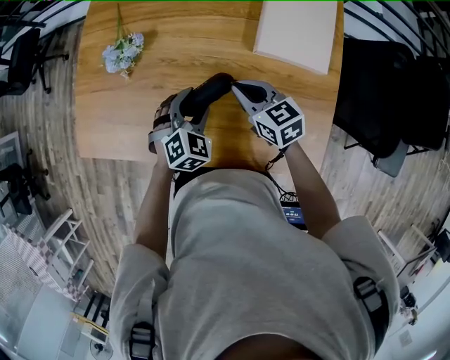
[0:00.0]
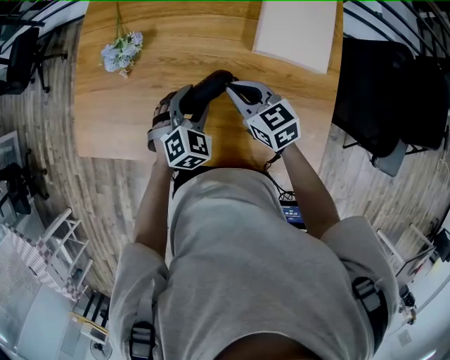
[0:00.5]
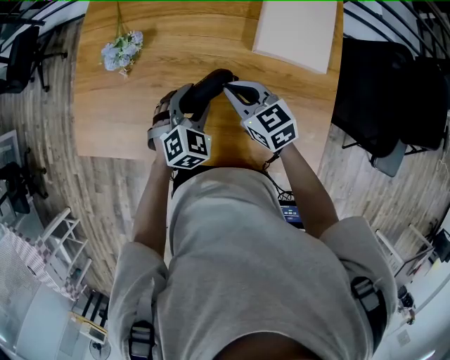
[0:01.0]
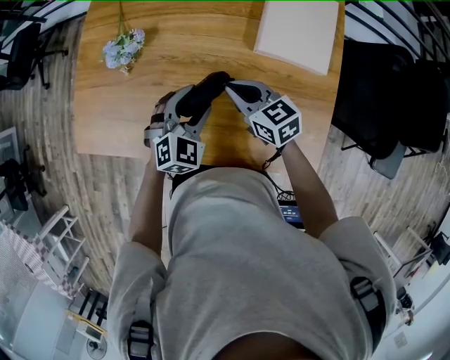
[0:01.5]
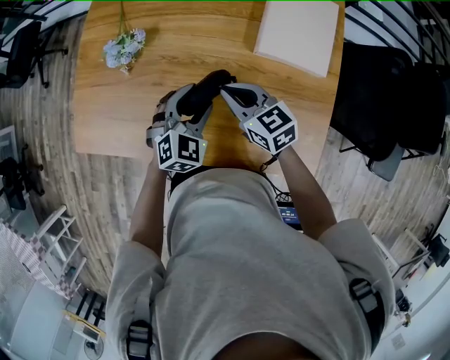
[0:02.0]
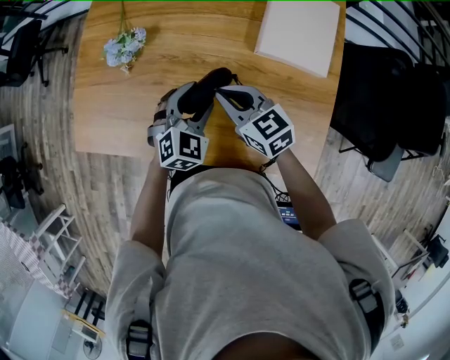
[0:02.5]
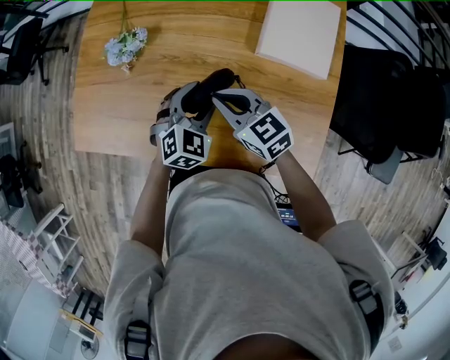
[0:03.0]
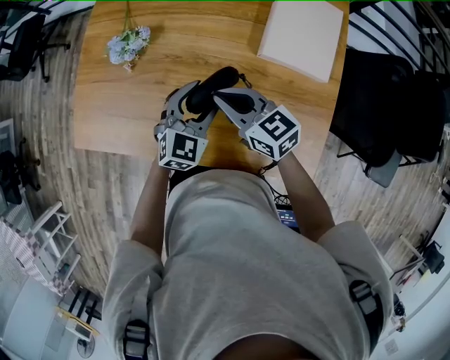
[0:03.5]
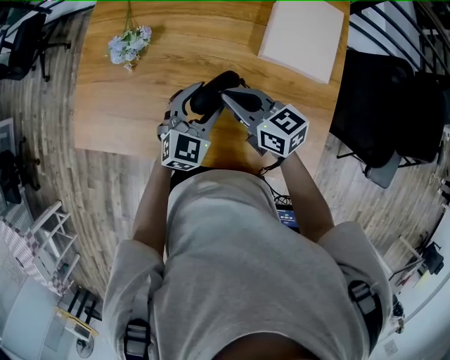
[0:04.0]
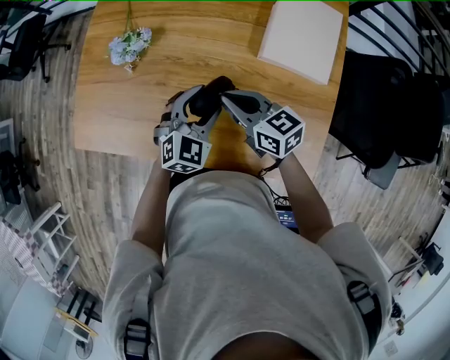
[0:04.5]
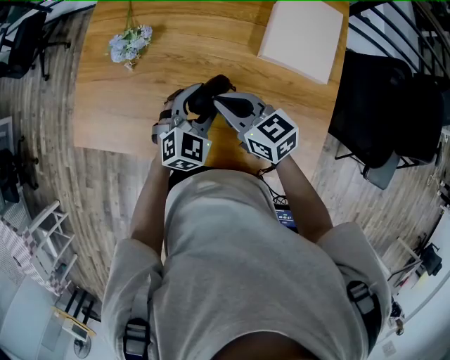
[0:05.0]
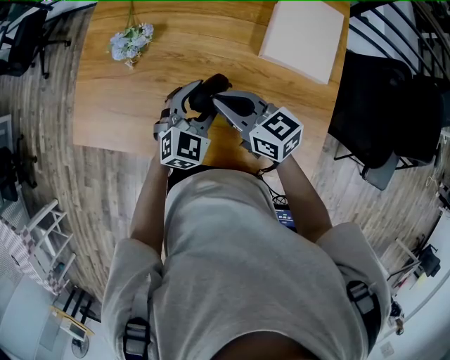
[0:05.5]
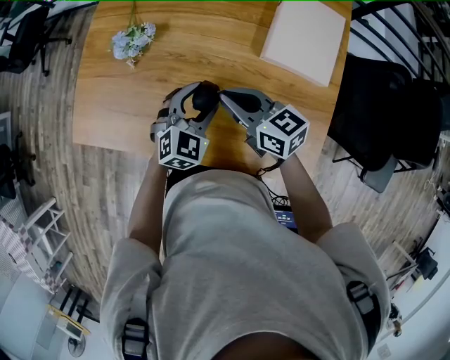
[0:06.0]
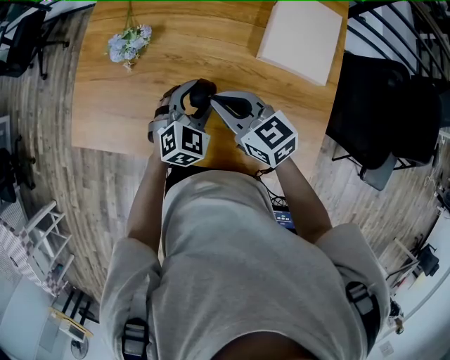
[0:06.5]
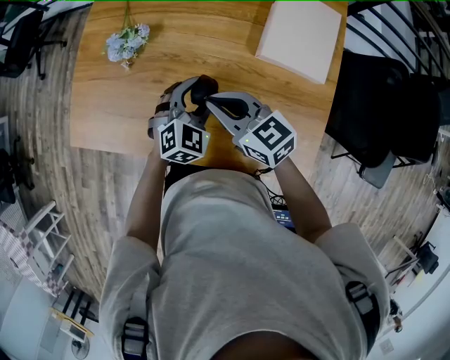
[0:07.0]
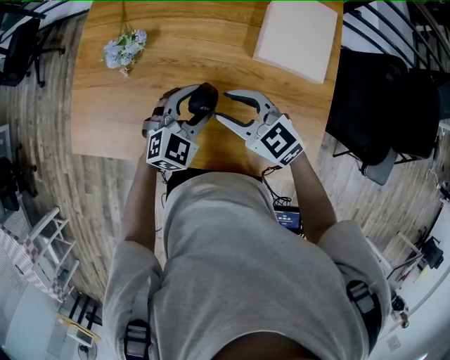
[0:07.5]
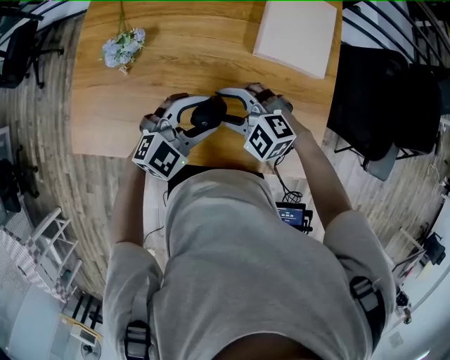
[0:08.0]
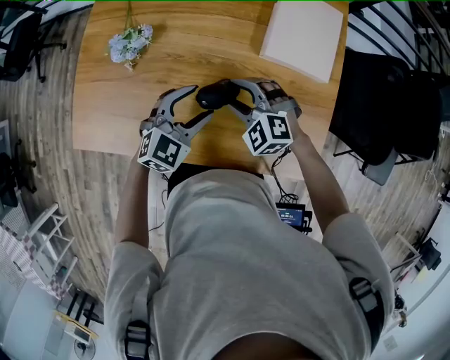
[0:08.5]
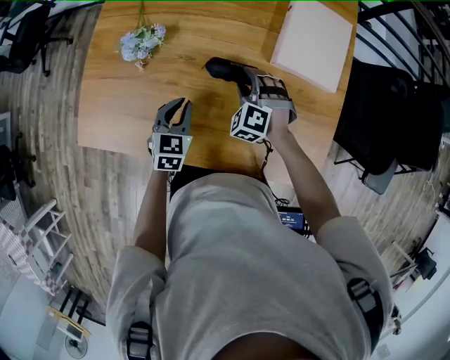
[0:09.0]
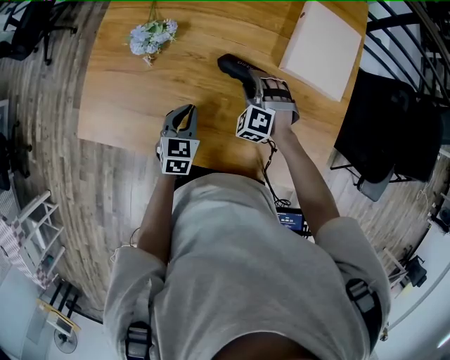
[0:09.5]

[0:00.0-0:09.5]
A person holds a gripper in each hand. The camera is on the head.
0:00.0 to 0:02.0: There are only small adjustments of the grippers.
0:02.0 to 0:04.0: The grippers stay close to where they were, moving slightly.
0:04.0 to 0:05.5: The grippers move only a little.
0:05.5 to 0:07.5: The right gripper turns by about 30 degrees, and opens its fingers.
0:07.5 to 0:09.5: The right gripper shifts roughly 15 cm downward, and rotates some 60 degrees; the left gripper shifts by roughly 15 cm, rotates approximately 40 degrees, and closes up.

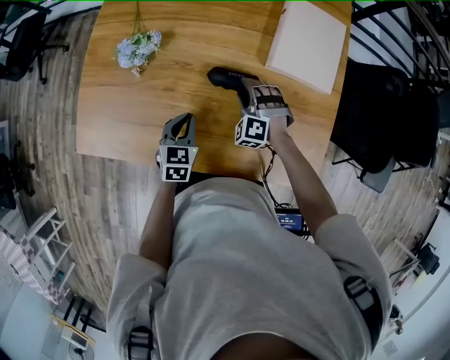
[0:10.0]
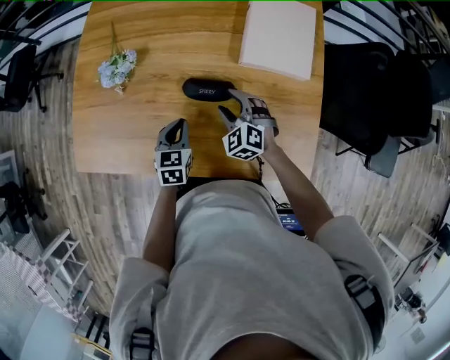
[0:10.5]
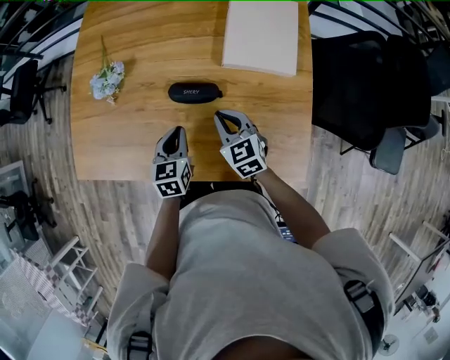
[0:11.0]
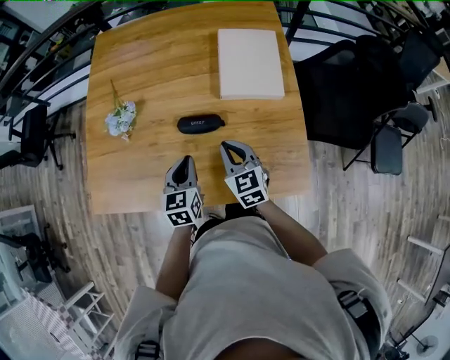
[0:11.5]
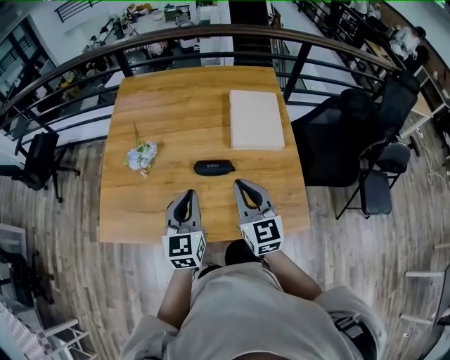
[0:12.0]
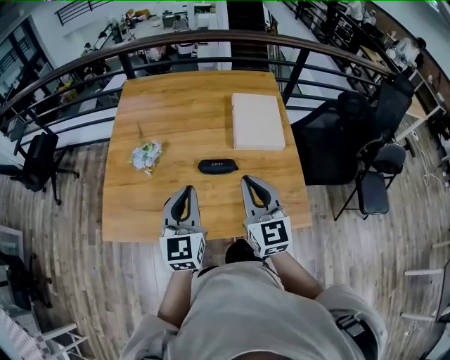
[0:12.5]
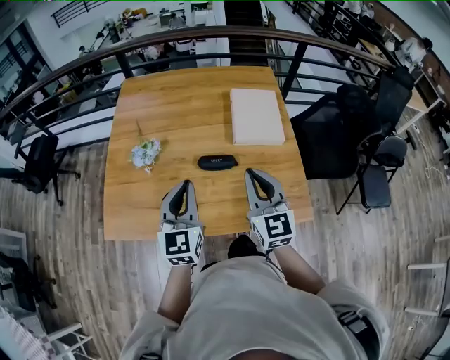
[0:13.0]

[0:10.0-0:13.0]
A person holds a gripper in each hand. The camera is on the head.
0:10.0 to 0:11.5: The left gripper heads upward and to the right, covering some 10 cm. The right gripper moves upward, backward and to the right, about 15 cm, twists roughly 70 degrees clockwise, seen from behind, and closes.
0:11.5 to 0:13.0: The two grippers go about 20 cm upward. The left gripper swivels some 30 degrees, while the right gripper swivels roughly 20 degrees.

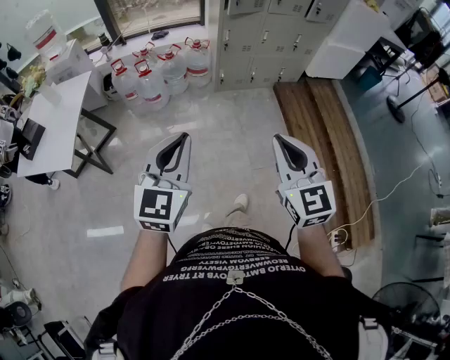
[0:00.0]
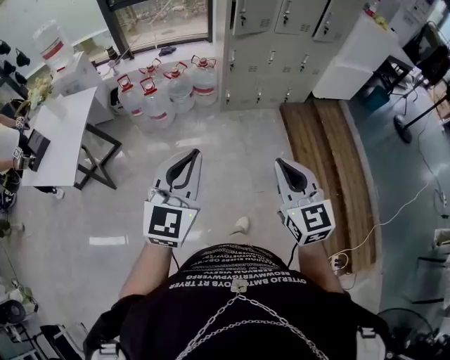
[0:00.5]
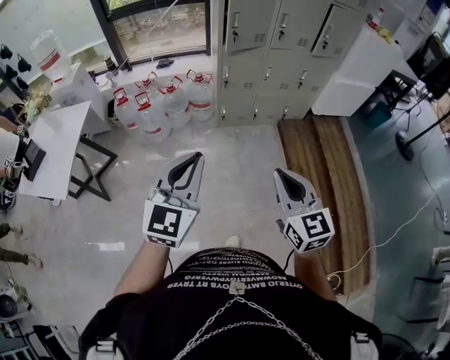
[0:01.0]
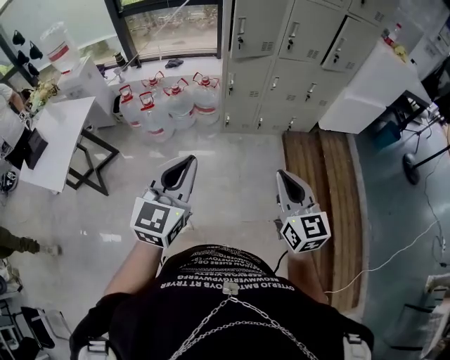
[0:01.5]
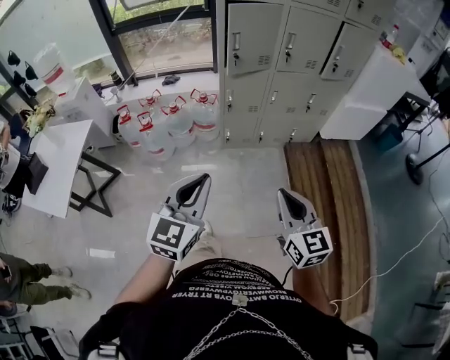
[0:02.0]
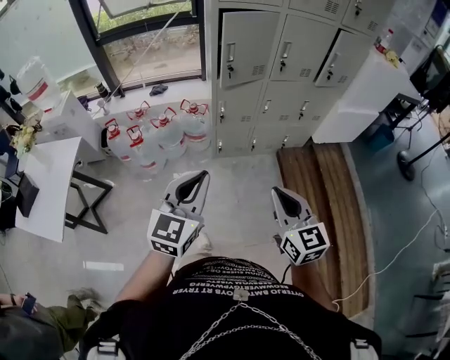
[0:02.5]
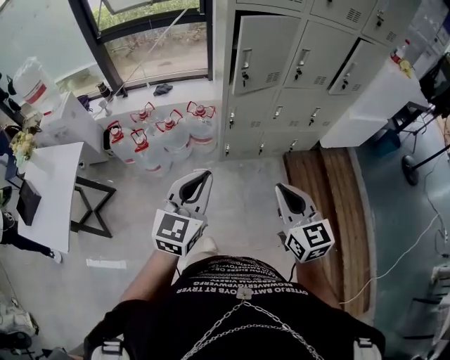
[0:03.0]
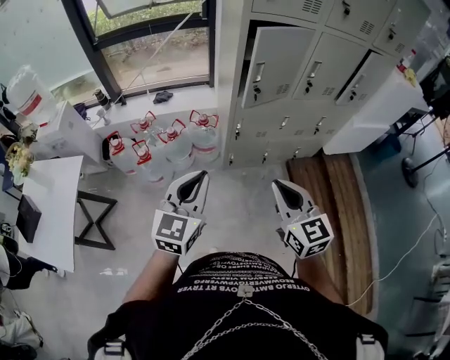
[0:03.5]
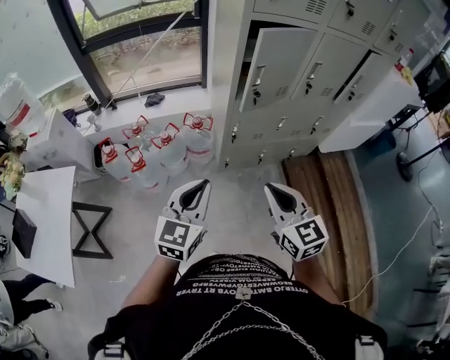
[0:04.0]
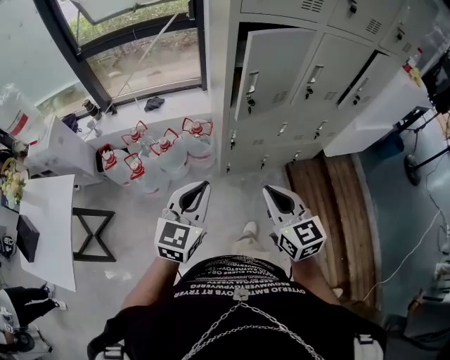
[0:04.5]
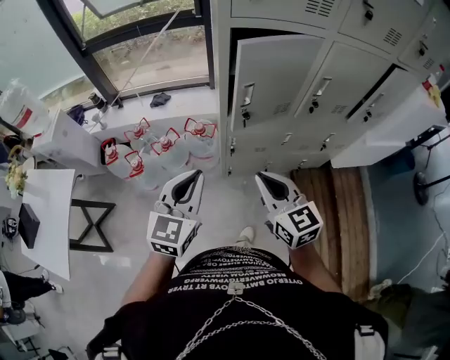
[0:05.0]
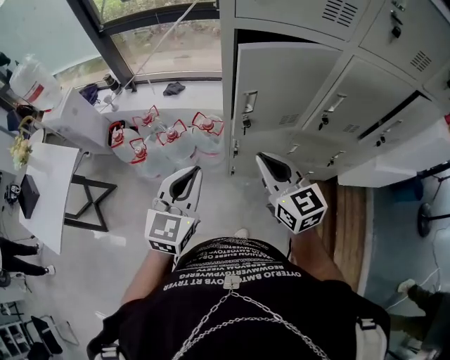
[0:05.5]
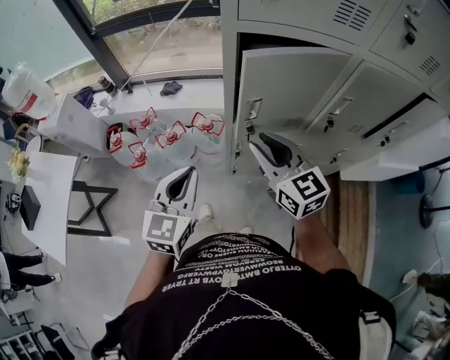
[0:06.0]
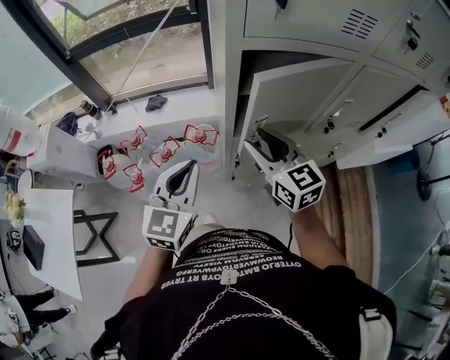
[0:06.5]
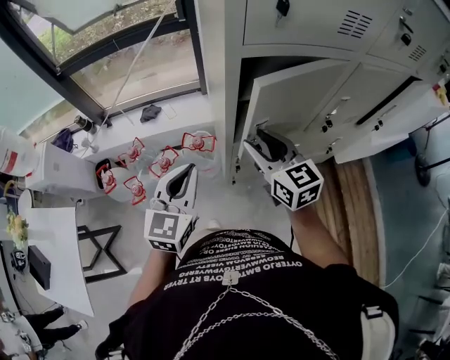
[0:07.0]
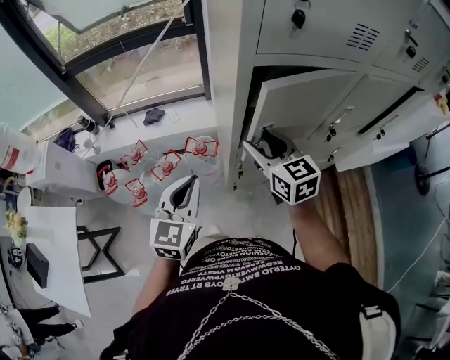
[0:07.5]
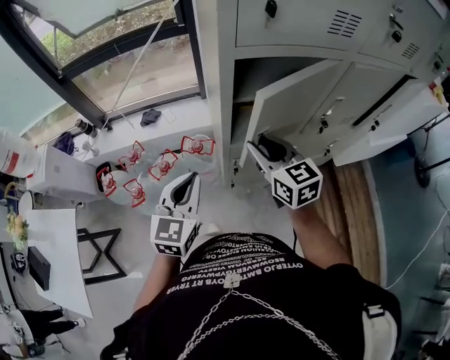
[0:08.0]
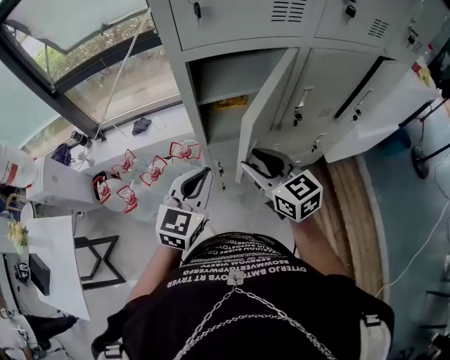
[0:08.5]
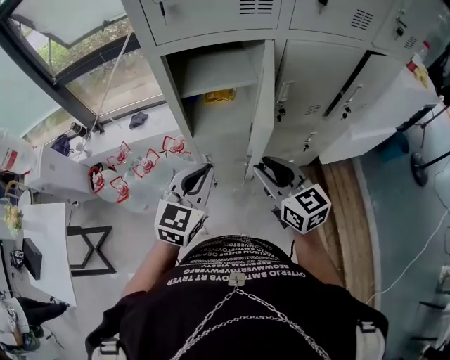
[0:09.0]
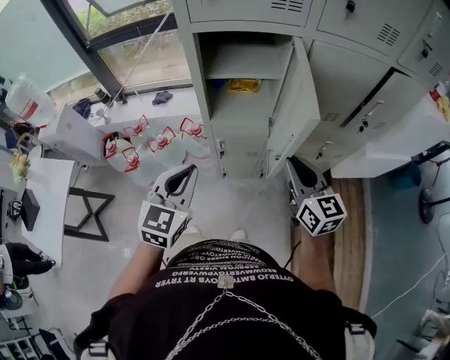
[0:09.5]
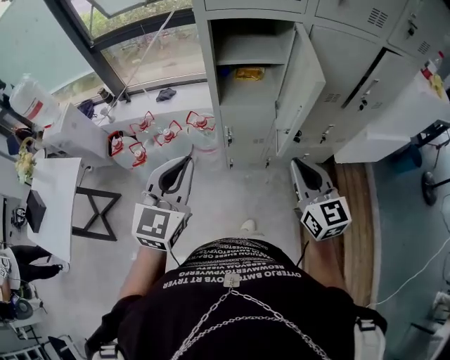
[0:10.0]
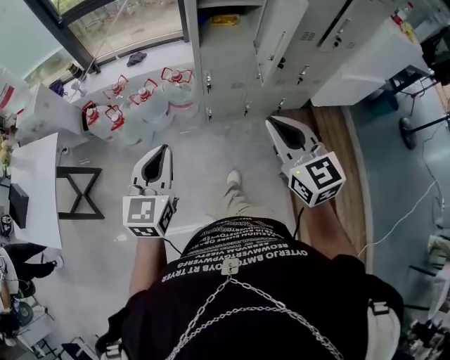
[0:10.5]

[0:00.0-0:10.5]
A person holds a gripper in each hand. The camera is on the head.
0:00.0 to 0:02.0: Both grippers travel together forward and to the right, about 35 cm.
0:02.0 to 0:04.0: Both grippers move forward and to the left, some 35 cm.
0:04.0 to 0:06.5: Both grippers travel together forward, some 35 cm. The right gripper opens its fingers.
0:06.5 to 0:08.5: The left gripper shifts approximately 10 cm to the right. The right gripper shifts about 10 cm to the right and backward.
0:08.5 to 0:10.5: The grippers both shift backward by approximately 35 cm. The right gripper closes up.

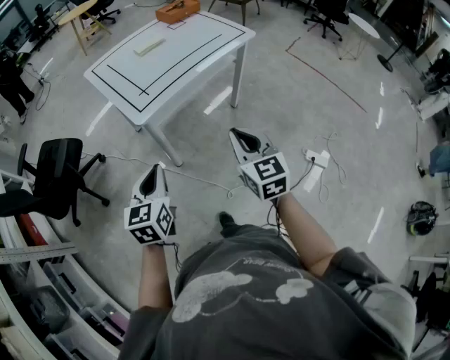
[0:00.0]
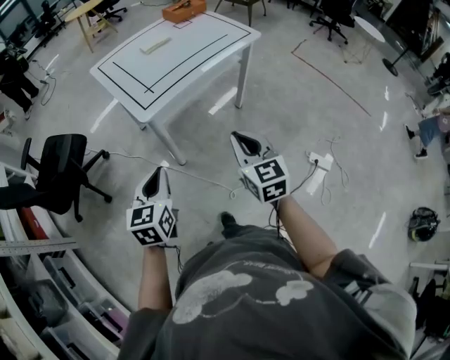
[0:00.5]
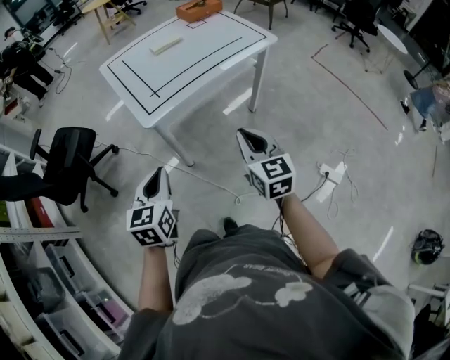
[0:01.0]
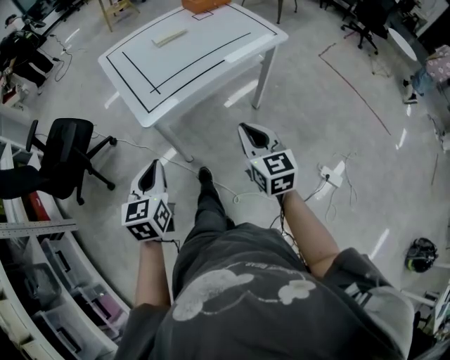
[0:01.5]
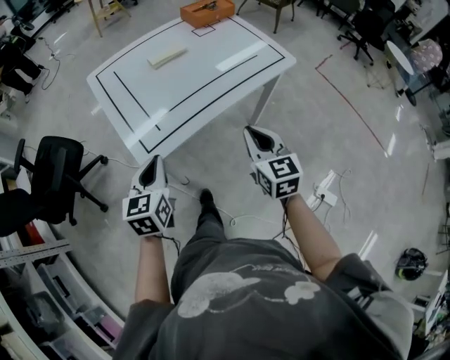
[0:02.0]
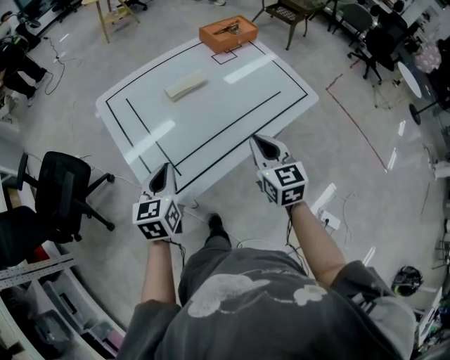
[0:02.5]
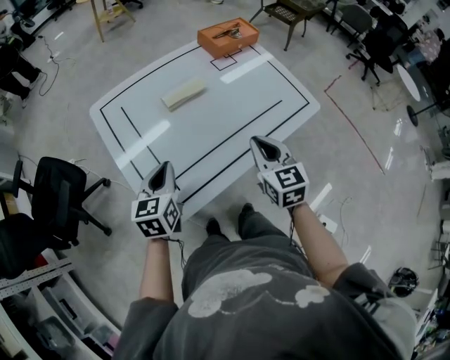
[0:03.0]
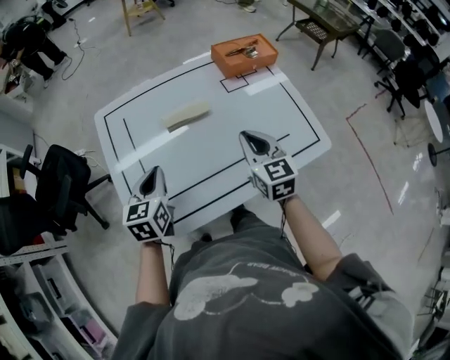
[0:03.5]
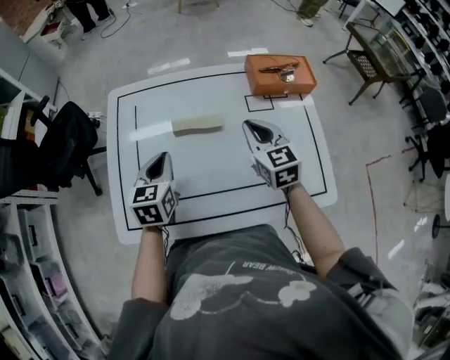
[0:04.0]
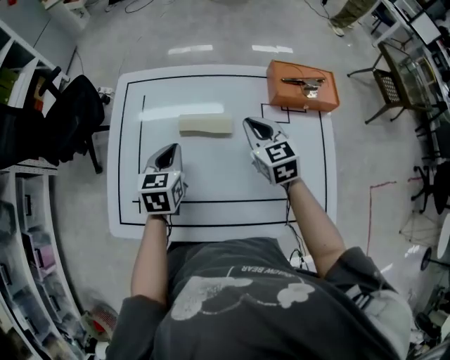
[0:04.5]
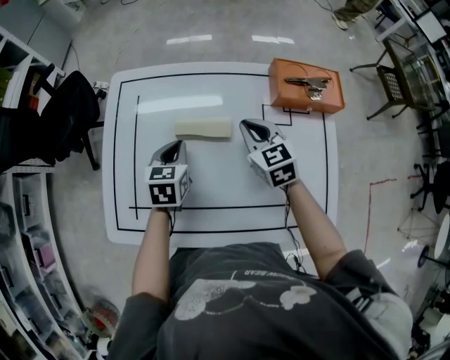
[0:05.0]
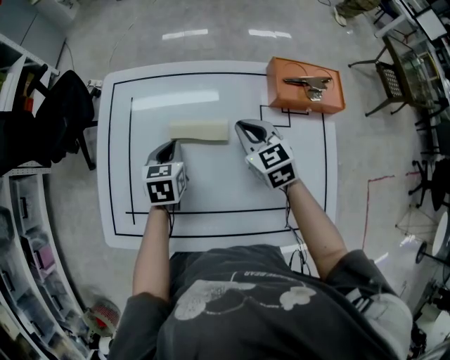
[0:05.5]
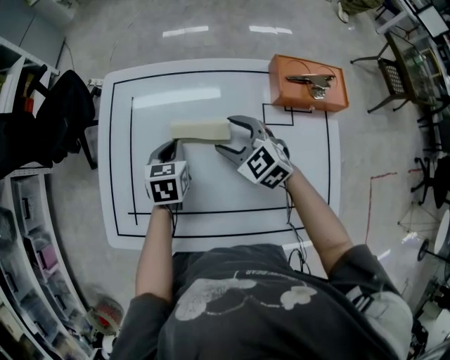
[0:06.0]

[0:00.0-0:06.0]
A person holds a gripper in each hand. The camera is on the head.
0:00.0 to 0:02.0: The grippers both shift forward by about 25 cm.
0:02.0 to 0:04.0: The right gripper ends up roughly 50 cm from where it was, and rotates some 30 degrees, while the left gripper shifts by approximately 35 cm, and changes its angle by approximately 30 degrees.
0:04.0 to 0:06.0: The left gripper goes roughly 15 cm downward and forward. The right gripper goes about 15 cm downward, to the left and forward, changes its angle by approximately 40 degrees, and opens.
